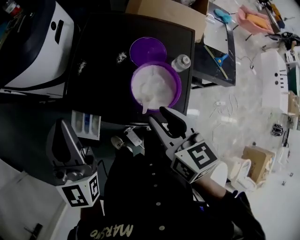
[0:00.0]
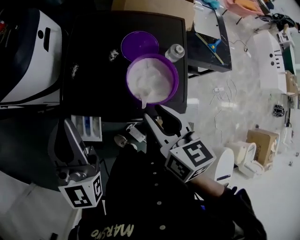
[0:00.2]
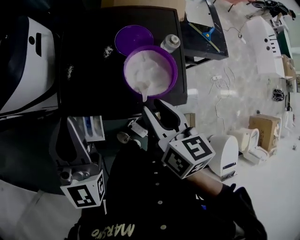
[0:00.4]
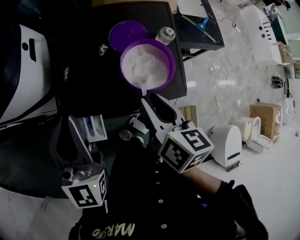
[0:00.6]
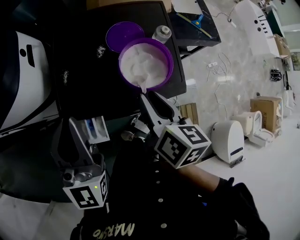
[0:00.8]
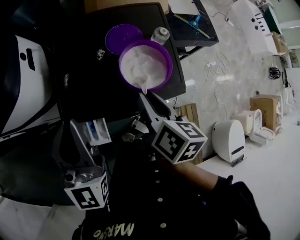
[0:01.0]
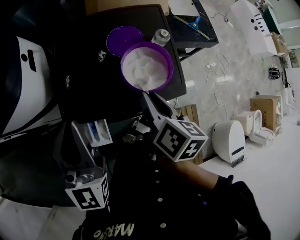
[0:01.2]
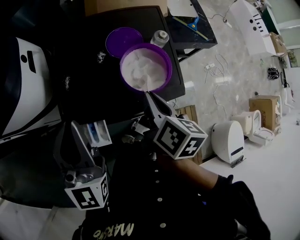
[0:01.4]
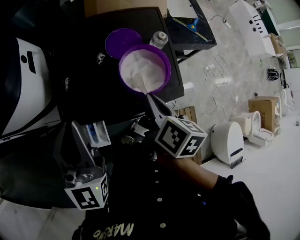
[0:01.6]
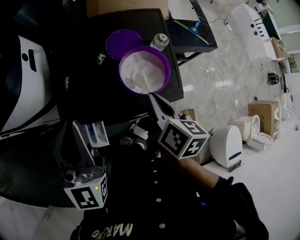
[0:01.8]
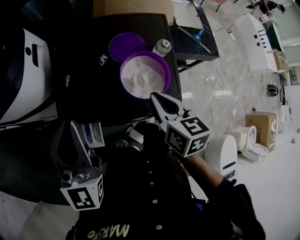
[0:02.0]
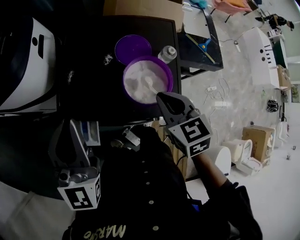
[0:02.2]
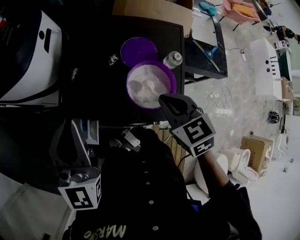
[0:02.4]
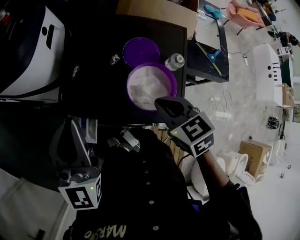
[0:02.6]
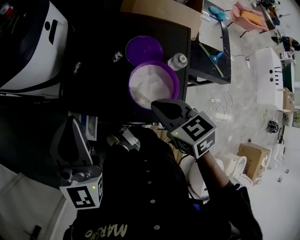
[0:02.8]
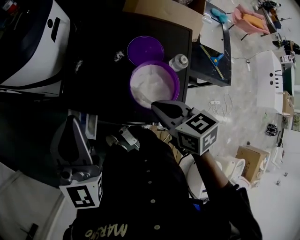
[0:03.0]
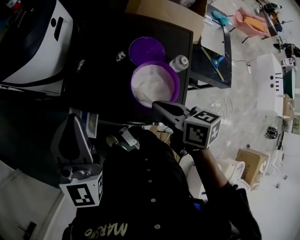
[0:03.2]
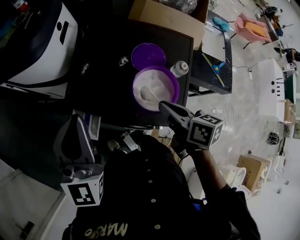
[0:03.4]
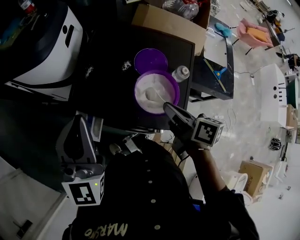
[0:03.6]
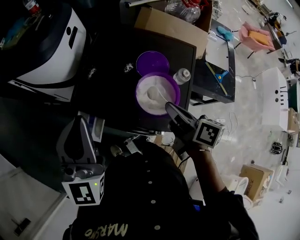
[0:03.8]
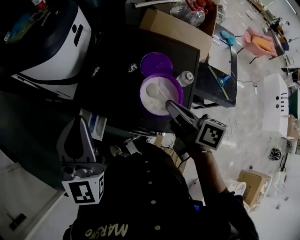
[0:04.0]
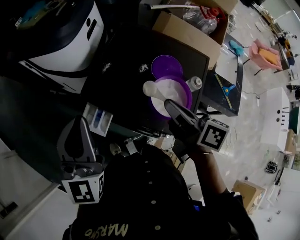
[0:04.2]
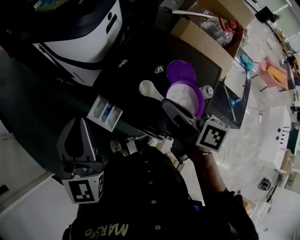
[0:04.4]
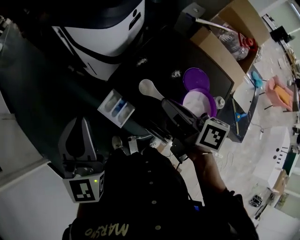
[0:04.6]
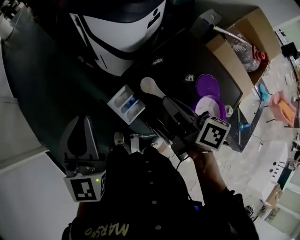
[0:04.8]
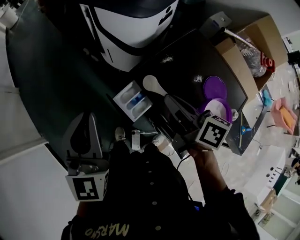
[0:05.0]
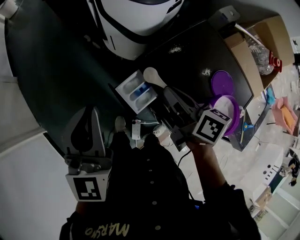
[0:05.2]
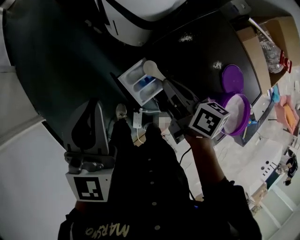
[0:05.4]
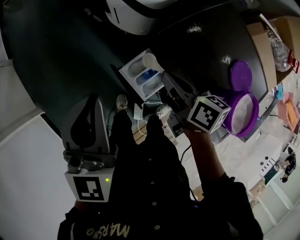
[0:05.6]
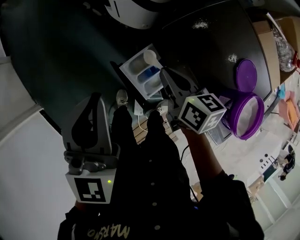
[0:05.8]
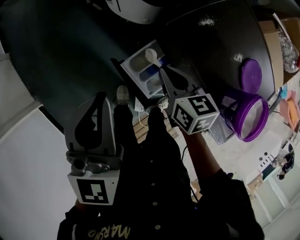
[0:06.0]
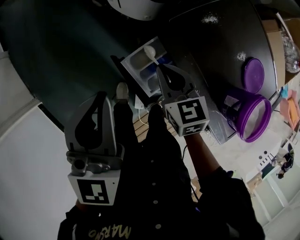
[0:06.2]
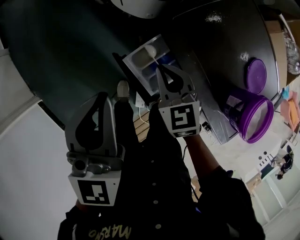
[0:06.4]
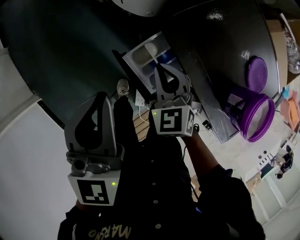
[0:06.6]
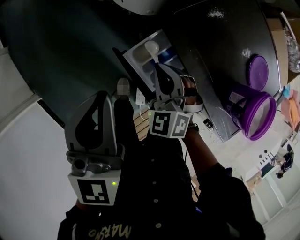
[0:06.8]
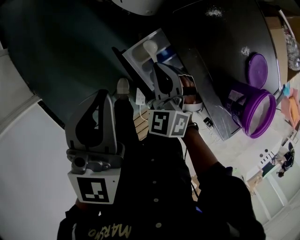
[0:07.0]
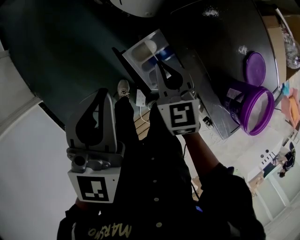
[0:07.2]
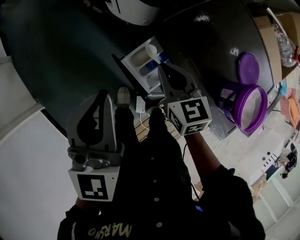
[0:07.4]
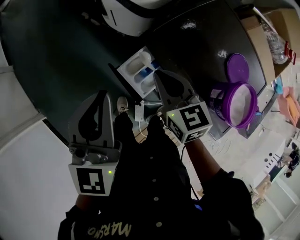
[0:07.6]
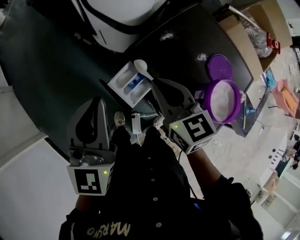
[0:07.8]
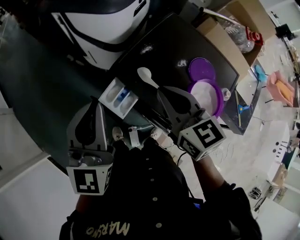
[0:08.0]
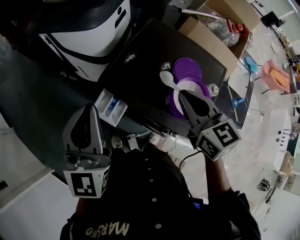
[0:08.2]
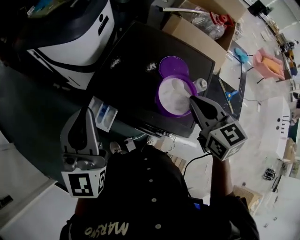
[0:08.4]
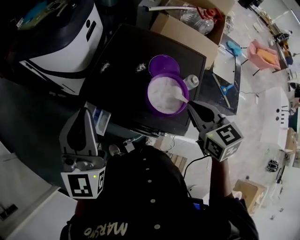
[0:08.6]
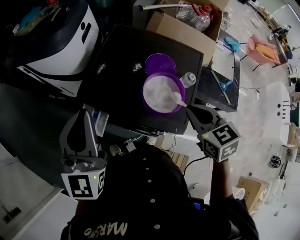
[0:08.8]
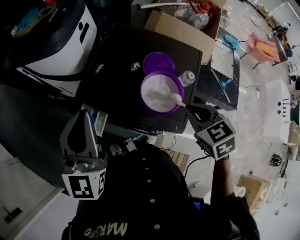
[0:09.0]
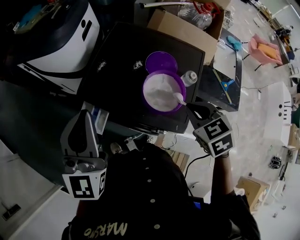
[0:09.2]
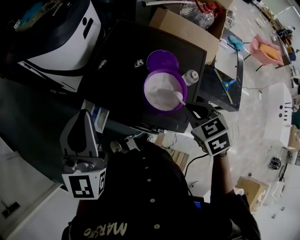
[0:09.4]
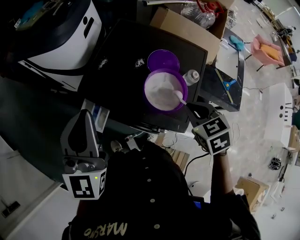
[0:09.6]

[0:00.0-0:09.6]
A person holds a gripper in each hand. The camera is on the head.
0:00.0 to 0:01.6: The right gripper rotates around the line of its fingers by roughly 40 degrees, clockwise from behind, and closes up; the left gripper swivels some 20 degrees.
0:01.6 to 0:03.2: The right gripper swivels roughly 50 degrees.
0:03.2 to 0:04.8: The left gripper changes place by some 20 cm, and turns by about 30 degrees; the right gripper moves roughly 20 cm, and rotates about 30 degrees.
0:04.8 to 0:06.4: The right gripper is displaced downward and to the left by some 25 cm, and twists approximately 60 degrees counterclockwise, seen from behind; the left gripper moves downward, about 15 cm.
0:06.4 to 0:08.0: The left gripper heads upward and to the right, covering approximately 15 cm; the right gripper shifts approximately 25 cm upward and to the right, and rotates approximately 30 degrees.
0:08.0 to 0:09.6: The right gripper travels to the right by approximately 25 cm, and tilts its fingers roughly 30 degrees downward. Meanwhile the left gripper shifts some 10 cm to the right.

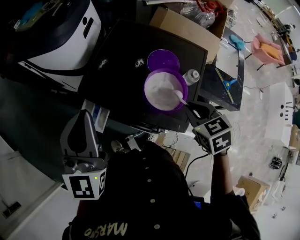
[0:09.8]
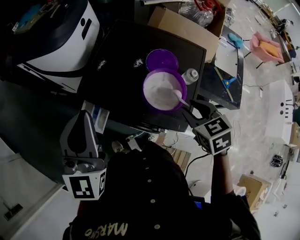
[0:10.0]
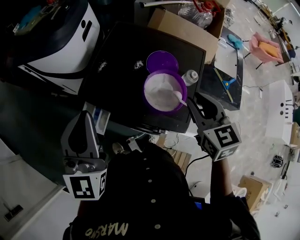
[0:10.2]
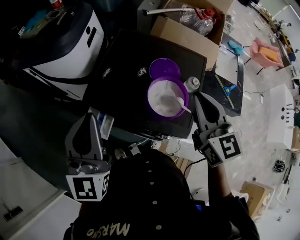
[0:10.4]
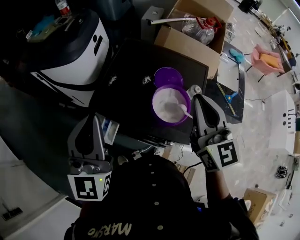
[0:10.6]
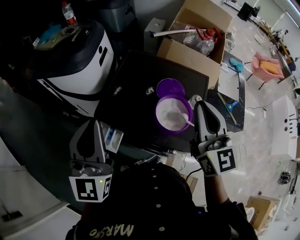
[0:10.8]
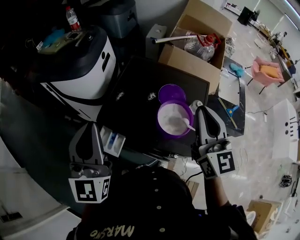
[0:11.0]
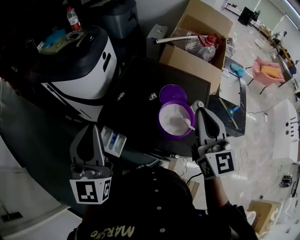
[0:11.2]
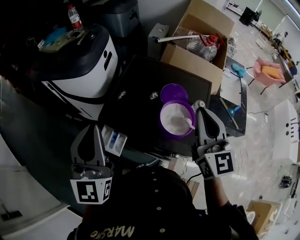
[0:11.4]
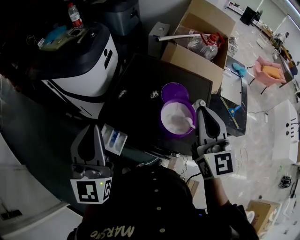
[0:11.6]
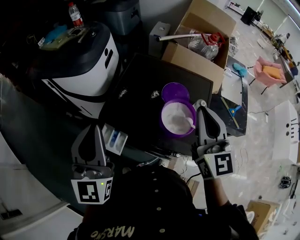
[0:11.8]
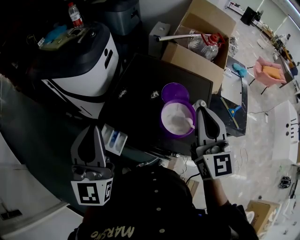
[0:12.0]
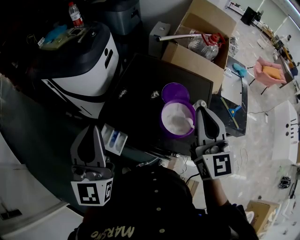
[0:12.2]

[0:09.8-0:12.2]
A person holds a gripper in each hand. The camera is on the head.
0:09.8 to 0:11.0: The right gripper heads upward, covering about 20 cm, angles its fingers upward, by roughly 60 degrees, and opens, then closes again; the left gripper moves upward, some 5 cm.
0:11.0 to 0:12.2: There are only small adjustments of the grippers.

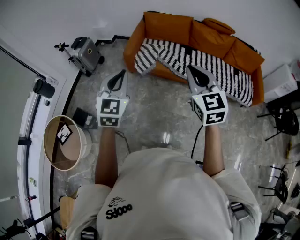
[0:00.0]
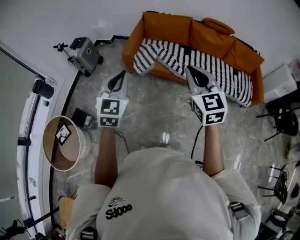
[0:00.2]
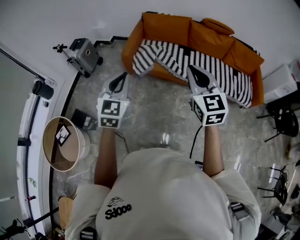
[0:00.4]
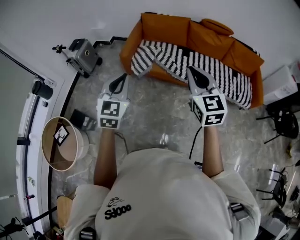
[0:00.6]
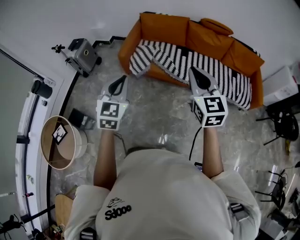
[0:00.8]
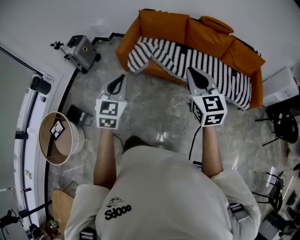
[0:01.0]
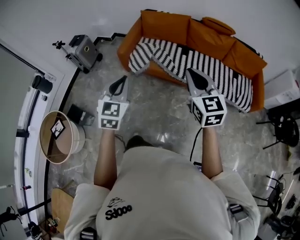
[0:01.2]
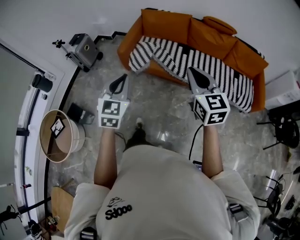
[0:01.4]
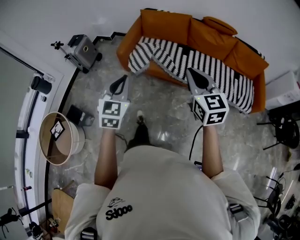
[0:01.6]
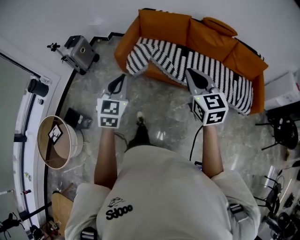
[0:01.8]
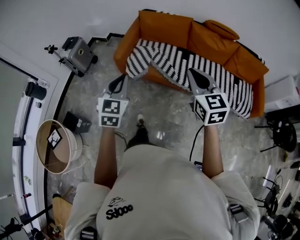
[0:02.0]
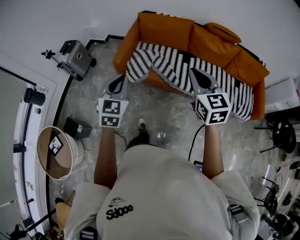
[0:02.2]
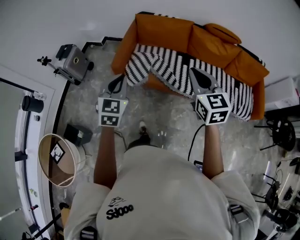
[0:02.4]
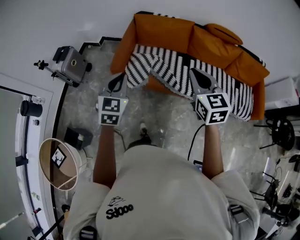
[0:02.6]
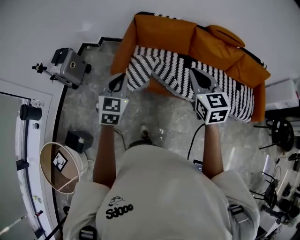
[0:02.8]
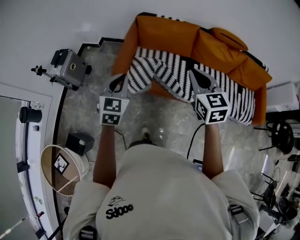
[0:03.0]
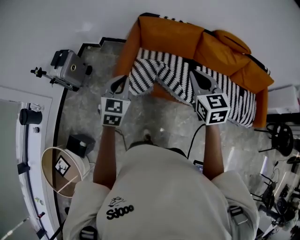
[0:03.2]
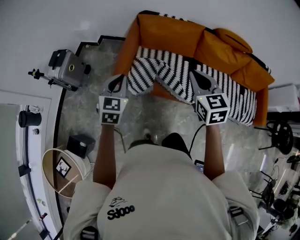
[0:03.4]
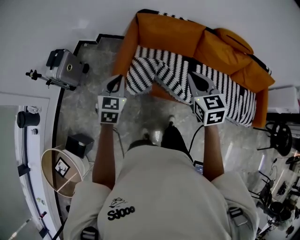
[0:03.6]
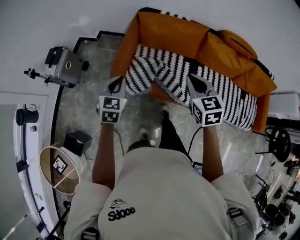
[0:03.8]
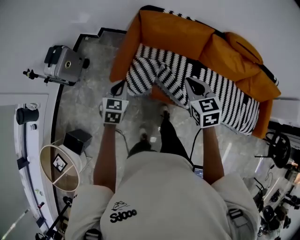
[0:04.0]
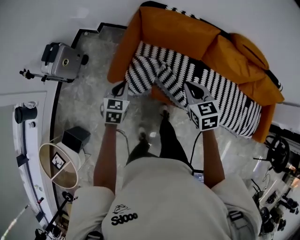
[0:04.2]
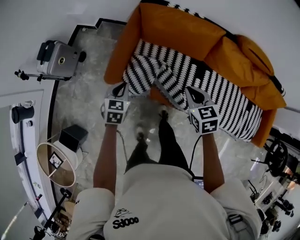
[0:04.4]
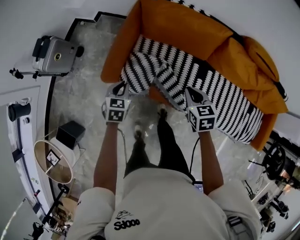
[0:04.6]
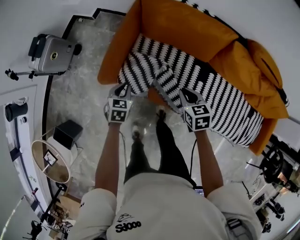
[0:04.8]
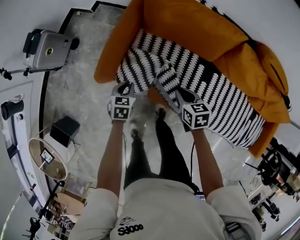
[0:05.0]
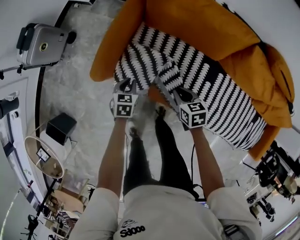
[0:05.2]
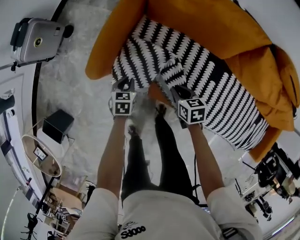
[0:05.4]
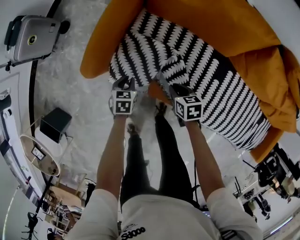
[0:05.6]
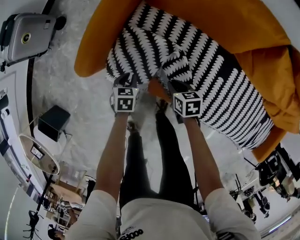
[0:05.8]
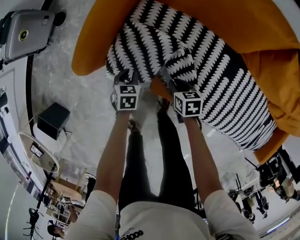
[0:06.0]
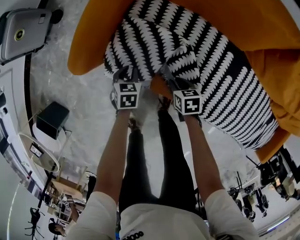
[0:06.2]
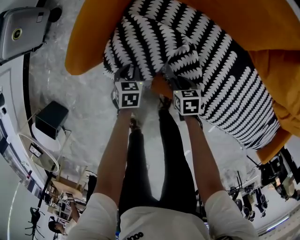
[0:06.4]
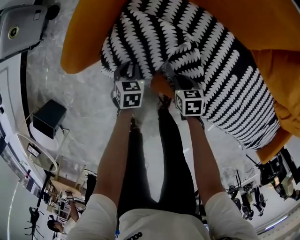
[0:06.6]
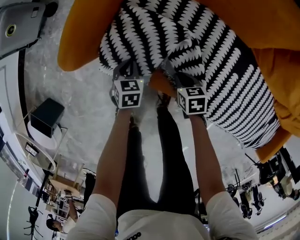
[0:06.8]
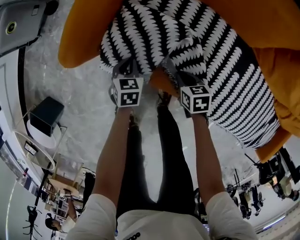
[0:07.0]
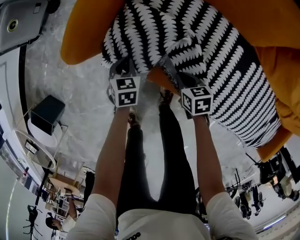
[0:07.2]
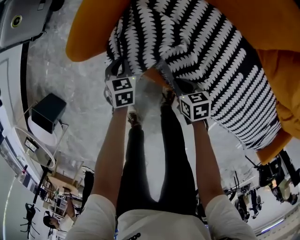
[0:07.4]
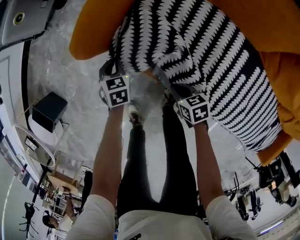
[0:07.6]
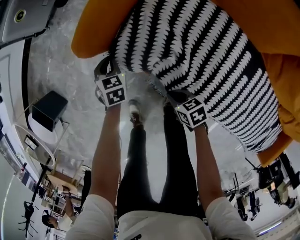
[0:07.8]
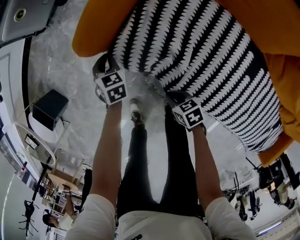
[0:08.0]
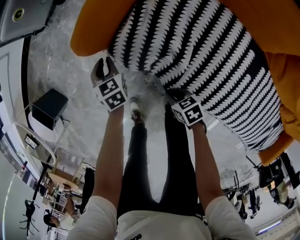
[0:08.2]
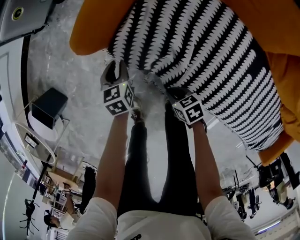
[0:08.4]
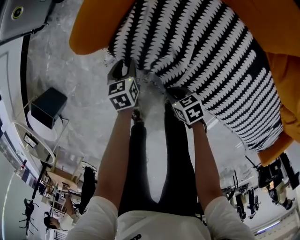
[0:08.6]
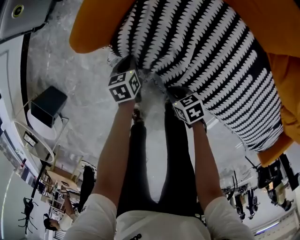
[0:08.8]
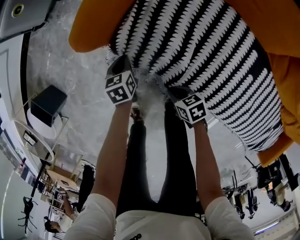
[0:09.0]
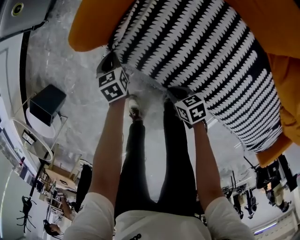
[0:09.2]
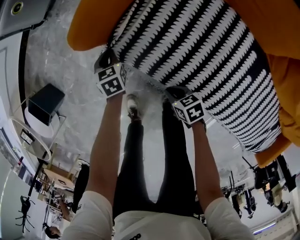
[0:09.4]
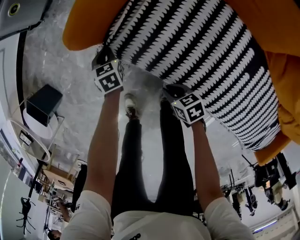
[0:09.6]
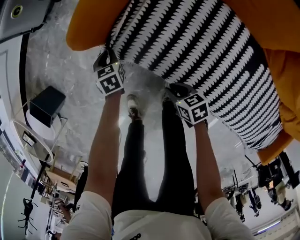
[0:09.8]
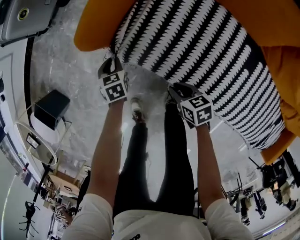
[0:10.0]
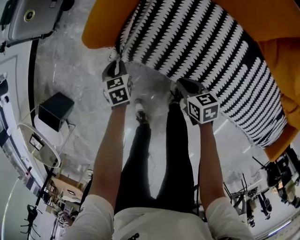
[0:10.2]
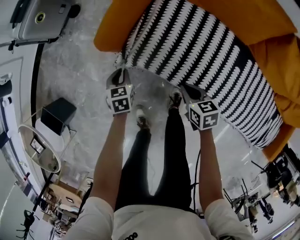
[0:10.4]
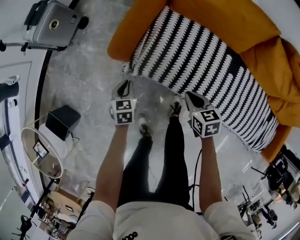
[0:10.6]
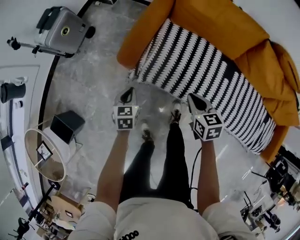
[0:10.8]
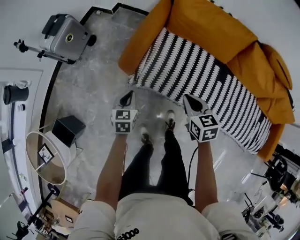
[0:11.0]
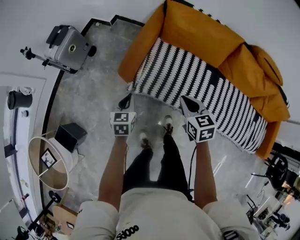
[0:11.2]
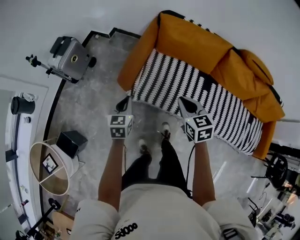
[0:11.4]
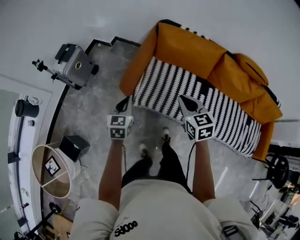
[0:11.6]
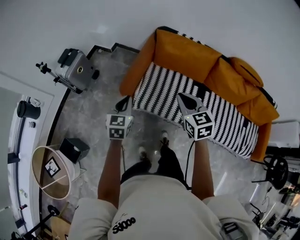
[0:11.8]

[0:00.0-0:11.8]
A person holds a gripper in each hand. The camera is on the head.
0:00.0 to 0:01.4: Both grippers move to the right, approximately 15 cm.
0:01.4 to 0:03.0: Both grippers move forward, approximately 35 cm.
0:03.0 to 0:04.4: Both grippers move downward and forward, approximately 30 cm. The left gripper swivels some 30 degrees, while the right gripper changes its angle by some 30 degrees.
0:04.4 to 0:06.0: Both grippers move downward, some 40 cm. The right gripper swivels roughly 30 degrees. The left gripper changes its angle by about 30 degrees.
0:06.0 to 0:07.4: The right gripper changes place by approximately 5 cm, while the left gripper changes place by some 5 cm.
0:07.4 to 0:08.8: The right gripper changes place by about 10 cm. The left gripper changes its angle by some 30 degrees, and opens, then closes once more.
0:08.8 to 0:10.4: The left gripper moves up and down over about 10 cm, changing direction 2 times, and turns by some 20 degrees; the right gripper goes up and down, about 15 cm each way, reversing 2 times, and rotates some 30 degrees.
0:10.4 to 0:11.8: The two grippers go approximately 50 cm upward. The left gripper rotates some 30 degrees. Meanwhile the right gripper swivels roughly 40 degrees.
